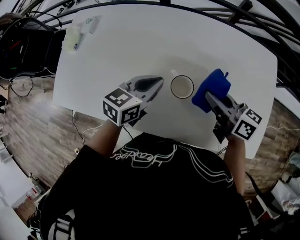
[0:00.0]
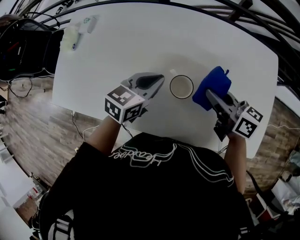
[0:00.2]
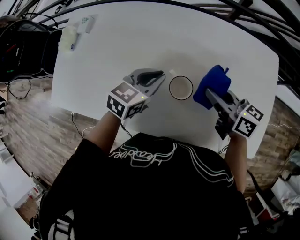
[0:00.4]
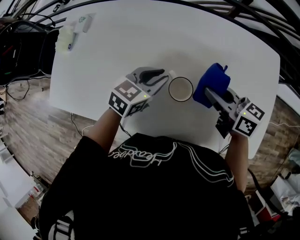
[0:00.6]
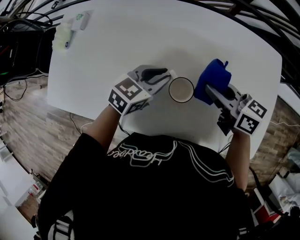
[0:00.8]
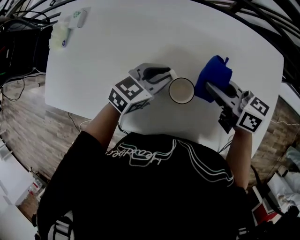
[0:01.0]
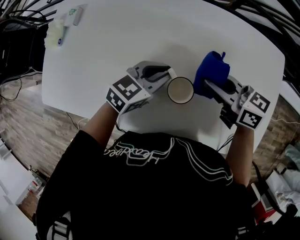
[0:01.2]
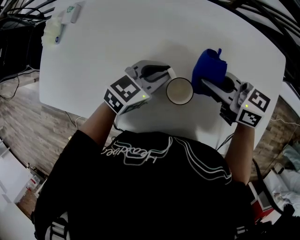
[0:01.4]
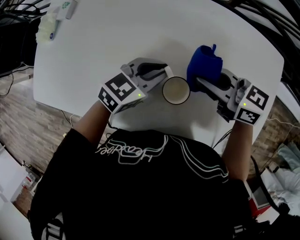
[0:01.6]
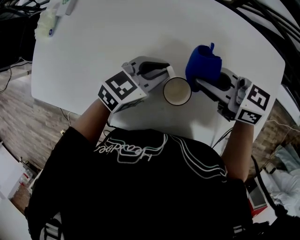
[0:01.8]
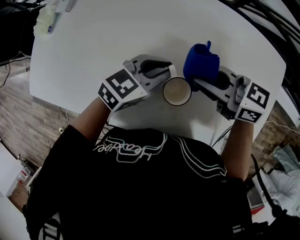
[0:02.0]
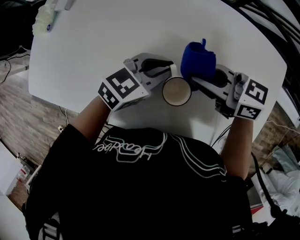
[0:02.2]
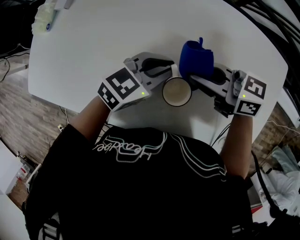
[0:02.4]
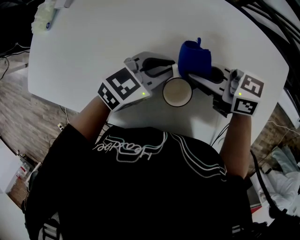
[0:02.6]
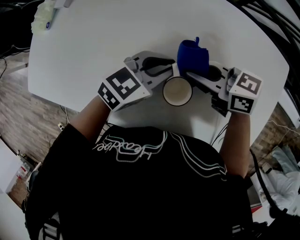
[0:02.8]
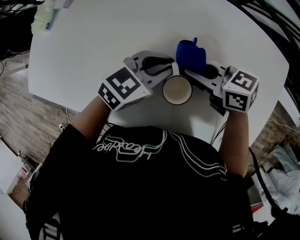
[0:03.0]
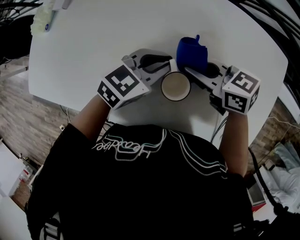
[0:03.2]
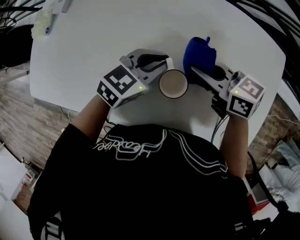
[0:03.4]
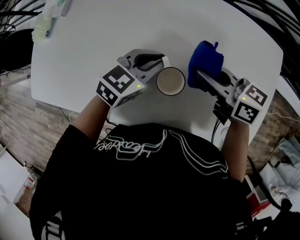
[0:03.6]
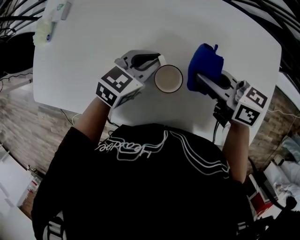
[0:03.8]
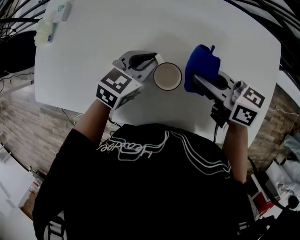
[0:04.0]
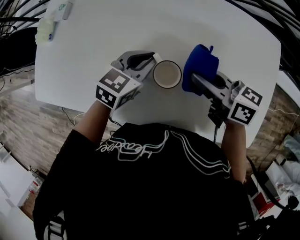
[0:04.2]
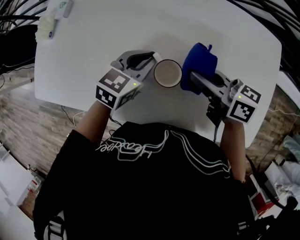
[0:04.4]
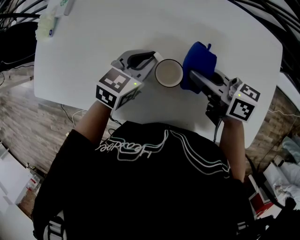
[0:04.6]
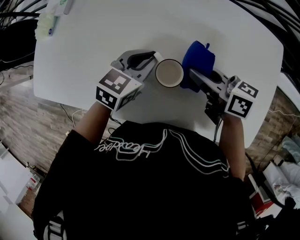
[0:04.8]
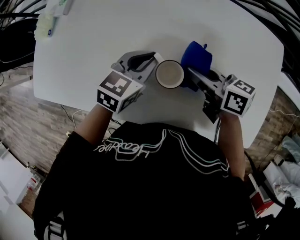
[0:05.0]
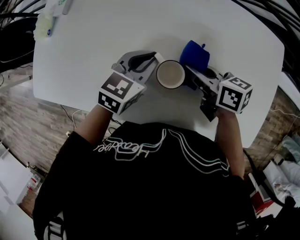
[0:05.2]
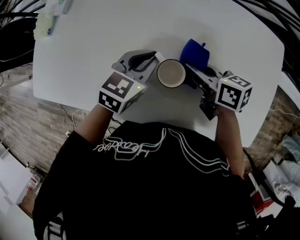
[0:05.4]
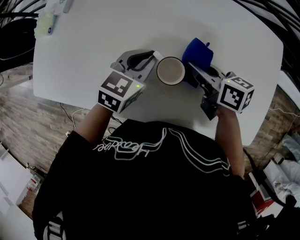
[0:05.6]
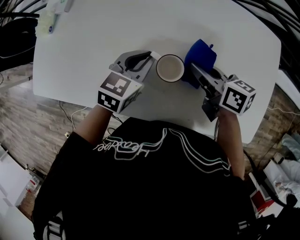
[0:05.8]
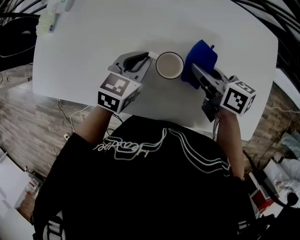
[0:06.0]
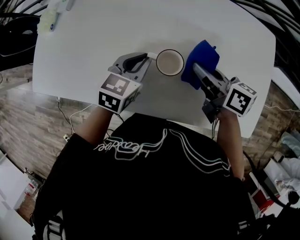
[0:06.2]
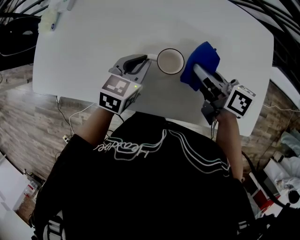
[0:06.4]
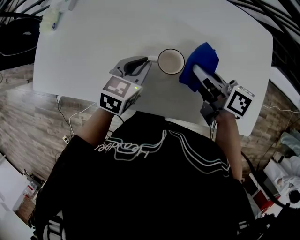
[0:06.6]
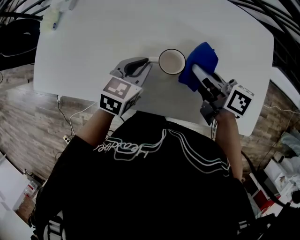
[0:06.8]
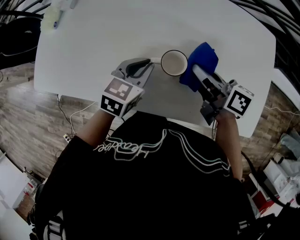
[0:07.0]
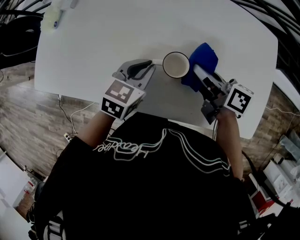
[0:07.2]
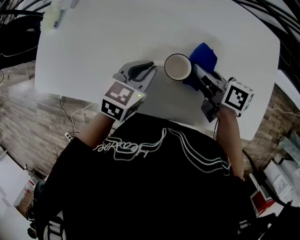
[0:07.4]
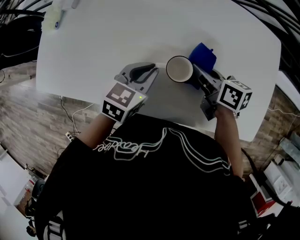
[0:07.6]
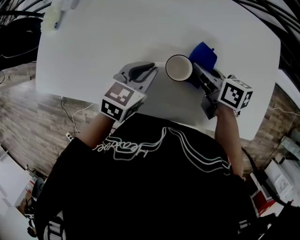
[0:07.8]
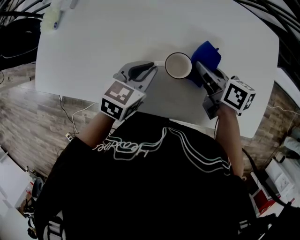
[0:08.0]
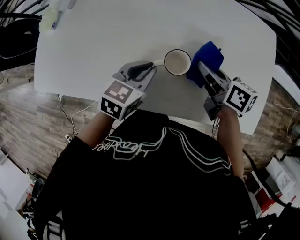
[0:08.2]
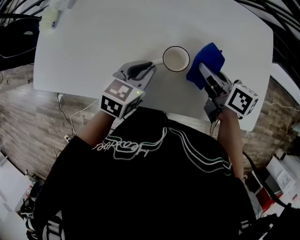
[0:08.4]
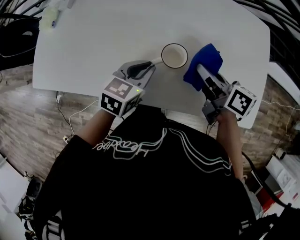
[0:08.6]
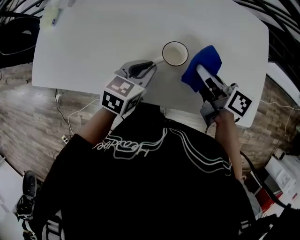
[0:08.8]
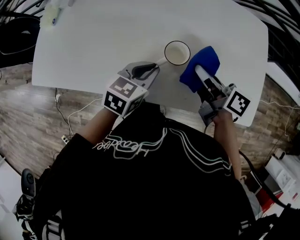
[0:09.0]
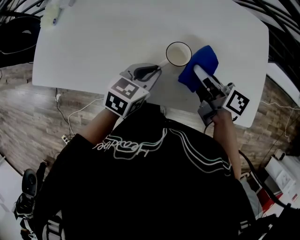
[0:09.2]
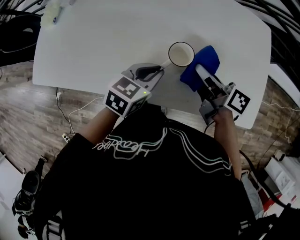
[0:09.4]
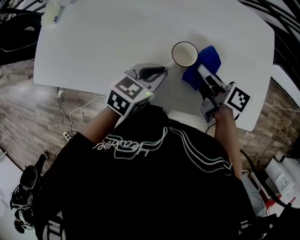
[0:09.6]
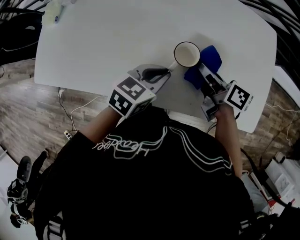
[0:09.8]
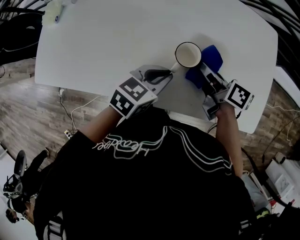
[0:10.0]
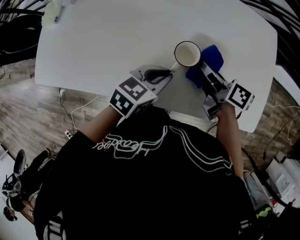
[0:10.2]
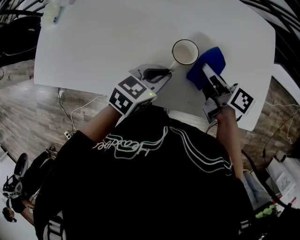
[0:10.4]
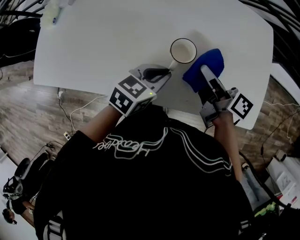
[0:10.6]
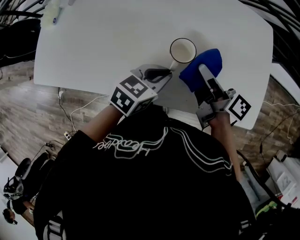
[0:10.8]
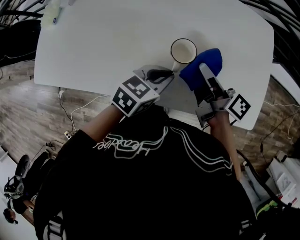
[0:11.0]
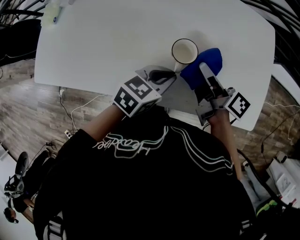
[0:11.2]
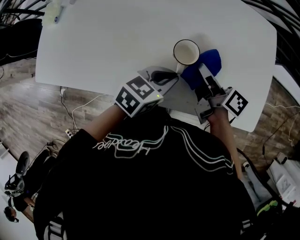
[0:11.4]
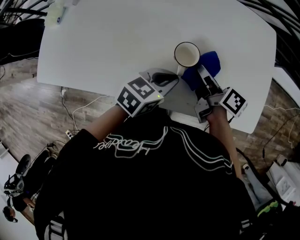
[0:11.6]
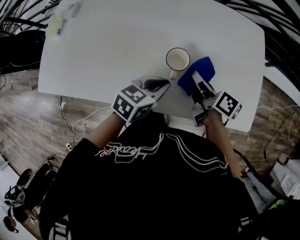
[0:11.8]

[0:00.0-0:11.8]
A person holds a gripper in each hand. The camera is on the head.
0:00.0 to 0:01.4: The right gripper ends up some 5 cm from where it was, and swivels roughly 20 degrees. The left gripper moves downward, about 5 cm.
0:01.4 to 0:03.0: The right gripper heads downward, covering roughly 5 cm.
0:03.0 to 0:04.4: The right gripper moves some 5 cm, and swivels some 30 degrees.
0:04.4 to 0:06.0: The grippers make only small movements.
0:06.0 to 0:07.4: There are only small adjustments of the grippers.
0:07.4 to 0:08.8: The right gripper is displaced backward by about 5 cm. Meanwhile the left gripper moves about 5 cm.
0:08.8 to 0:10.4: The left gripper is displaced to the right by roughly 5 cm.
0:10.4 to 0:11.8: The grippers stay close to where they were, moving slightly.

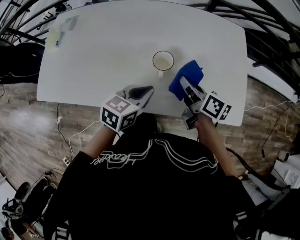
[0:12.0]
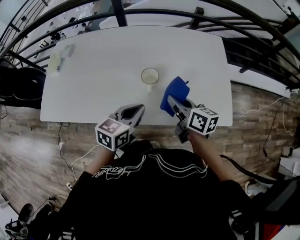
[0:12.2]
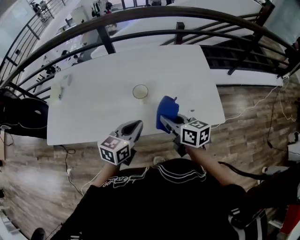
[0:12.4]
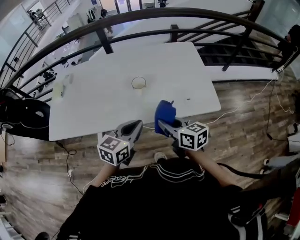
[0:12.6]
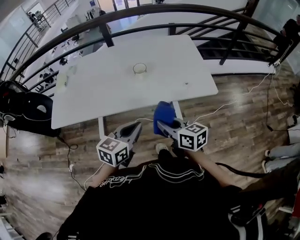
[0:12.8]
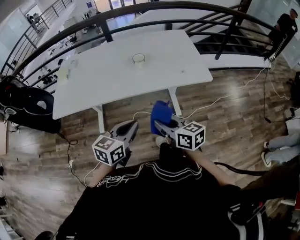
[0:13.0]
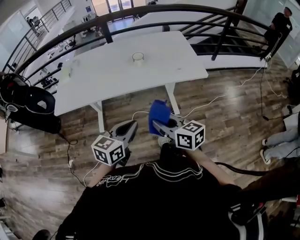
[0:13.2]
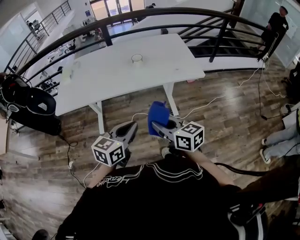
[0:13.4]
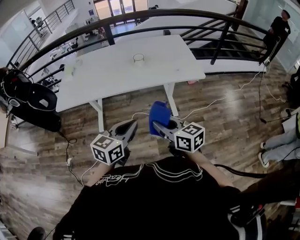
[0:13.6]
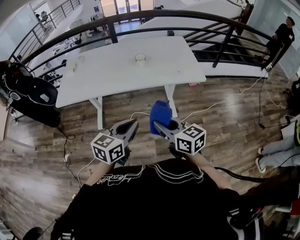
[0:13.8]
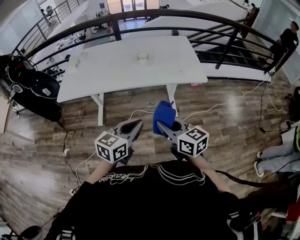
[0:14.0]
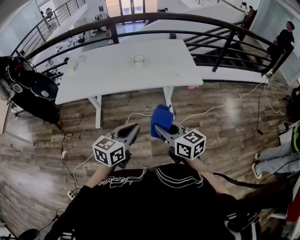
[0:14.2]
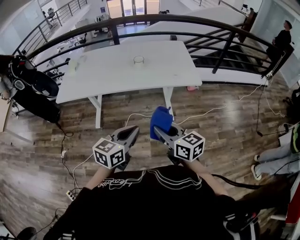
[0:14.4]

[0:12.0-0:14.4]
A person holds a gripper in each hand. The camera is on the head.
0:12.0 to 0:13.2: The two grippers travel together, backward, some 40 cm. The right gripper rotates approximately 30 degrees.
0:13.2 to 0:14.4: Both grippers move backward and to the right, roughly 10 cm.

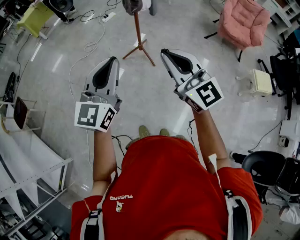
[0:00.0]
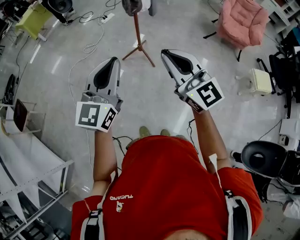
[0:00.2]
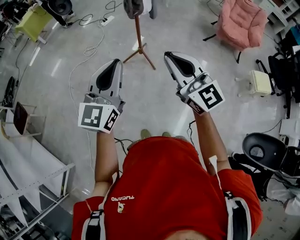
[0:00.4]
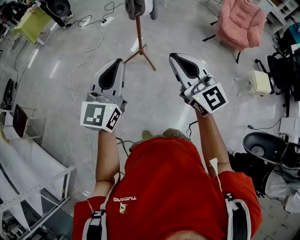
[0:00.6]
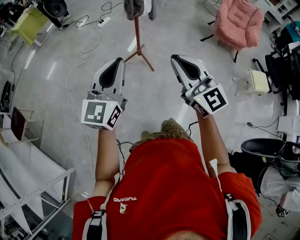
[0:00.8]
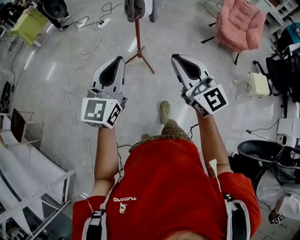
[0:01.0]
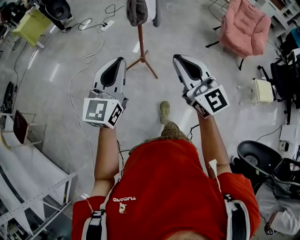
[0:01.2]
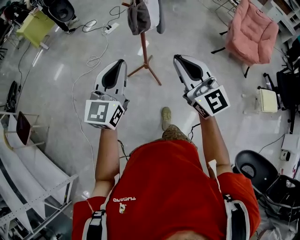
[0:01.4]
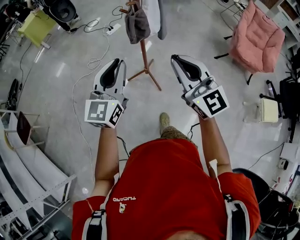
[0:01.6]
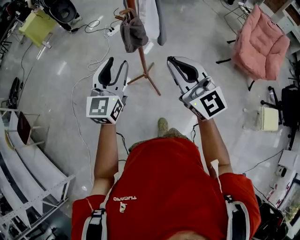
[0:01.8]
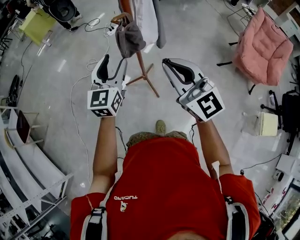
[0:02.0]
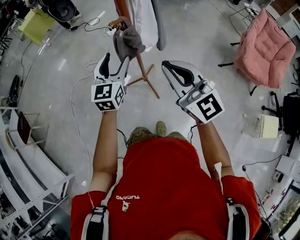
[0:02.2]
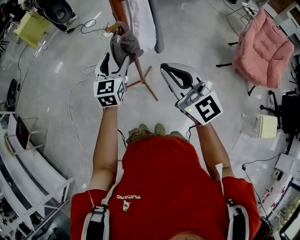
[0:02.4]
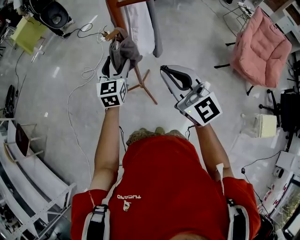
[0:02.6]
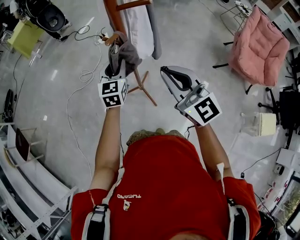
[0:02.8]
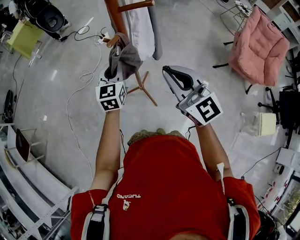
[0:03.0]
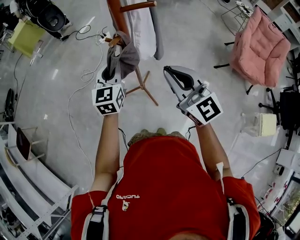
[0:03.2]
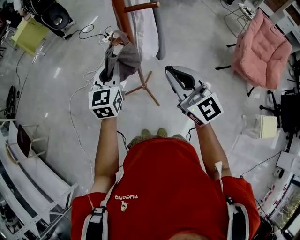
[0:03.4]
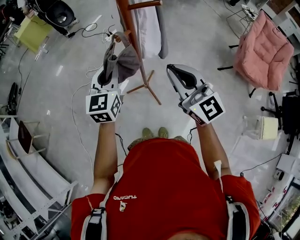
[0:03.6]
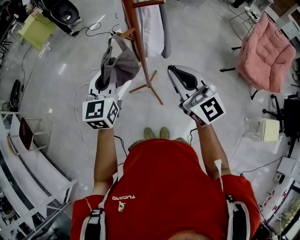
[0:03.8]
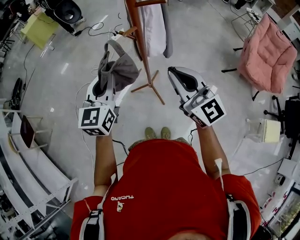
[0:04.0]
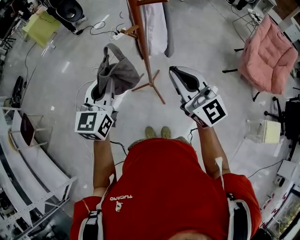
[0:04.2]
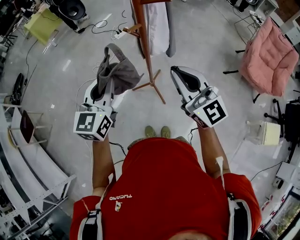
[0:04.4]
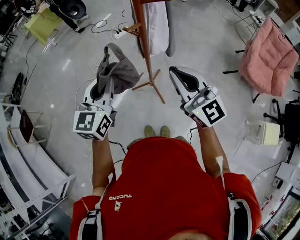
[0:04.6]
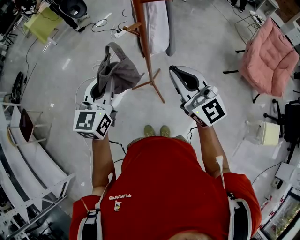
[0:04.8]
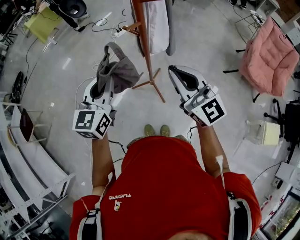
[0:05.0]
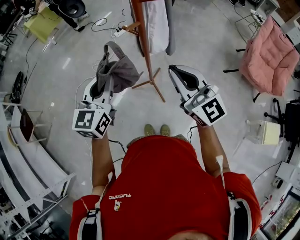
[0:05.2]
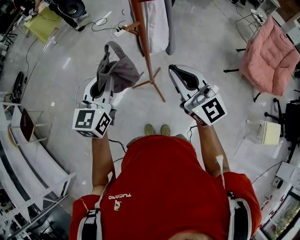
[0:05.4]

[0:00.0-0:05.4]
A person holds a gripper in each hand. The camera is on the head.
0:00.0 to 0:01.4: Both grippers travel together forward, some 20 cm.
0:01.4 to 0:02.8: The left gripper heads forward and downward, covering about 40 cm, rotates approximately 20 degrees, and opens up. The right gripper is displaced forward by some 25 cm.
0:02.8 to 0:04.0: The left gripper travels upward, backward and to the left by approximately 20 cm, and closes.
0:04.0 to 0:05.4: The grippers move only a little.

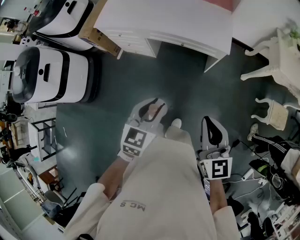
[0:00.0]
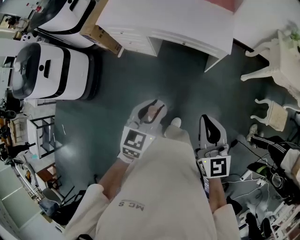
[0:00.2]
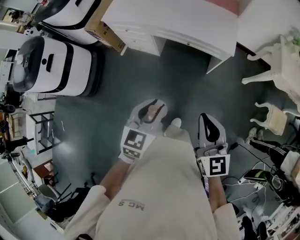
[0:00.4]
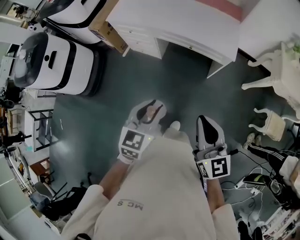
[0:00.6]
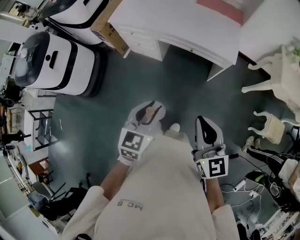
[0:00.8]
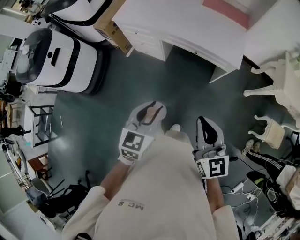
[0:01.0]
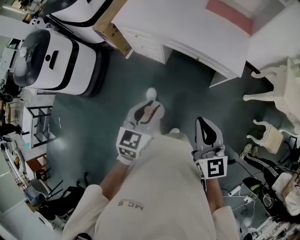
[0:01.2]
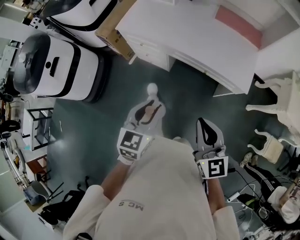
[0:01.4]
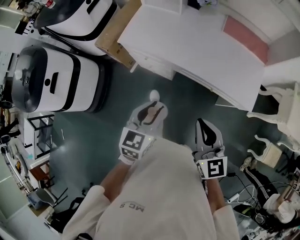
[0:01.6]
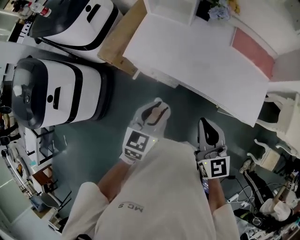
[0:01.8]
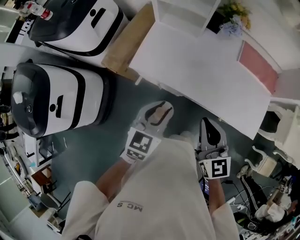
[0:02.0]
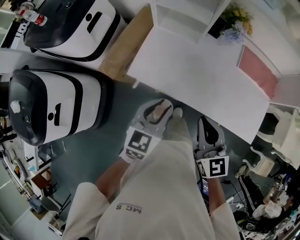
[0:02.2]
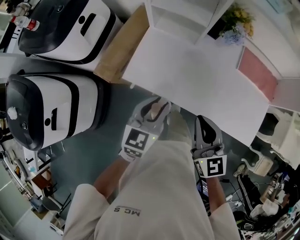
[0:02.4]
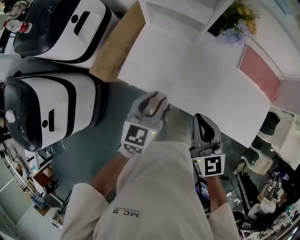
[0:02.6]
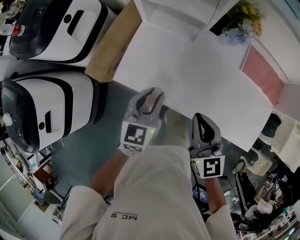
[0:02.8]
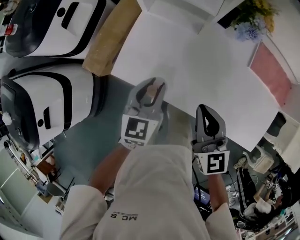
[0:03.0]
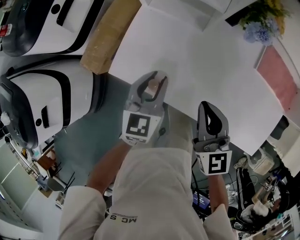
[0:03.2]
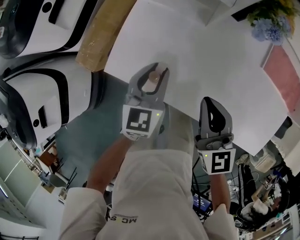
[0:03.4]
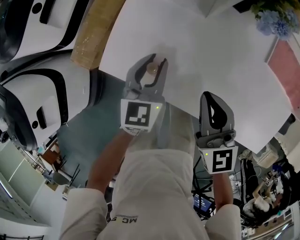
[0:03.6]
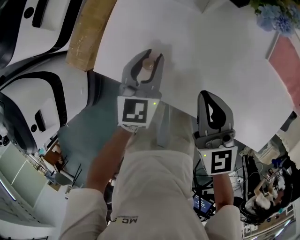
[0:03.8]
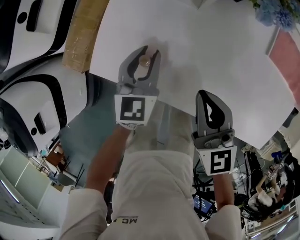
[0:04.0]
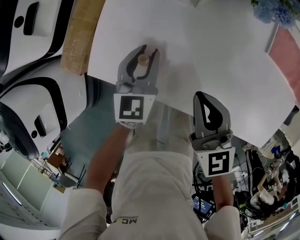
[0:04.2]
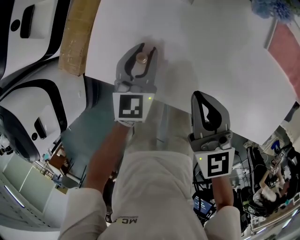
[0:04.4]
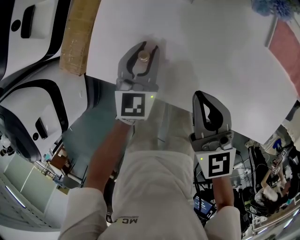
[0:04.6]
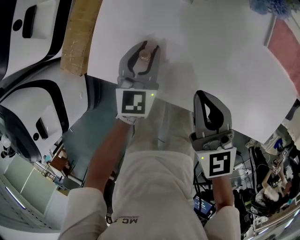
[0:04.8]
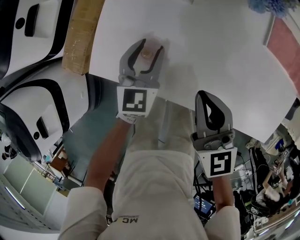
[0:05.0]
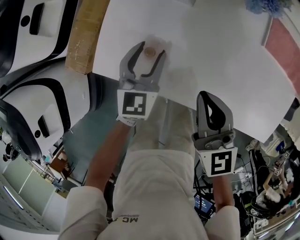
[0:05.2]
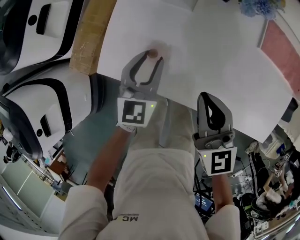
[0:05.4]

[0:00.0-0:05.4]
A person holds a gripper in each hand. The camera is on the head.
0:00.0 to 0:01.4: The right gripper moves forward and to the left, about 20 cm; the left gripper shifts about 20 cm to the left and forward.
0:01.4 to 0:02.8: The two grippers travel together, forward, roughly 60 cm.
0:02.8 to 0:04.0: Both grippers move downward and forward, roughly 15 cm.
0:04.0 to 0:05.4: The right gripper ends up roughly 5 cm from where it was. The left gripper moves about 5 cm.
